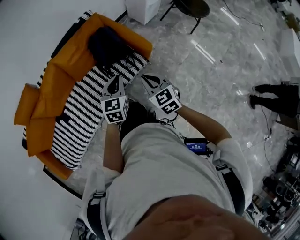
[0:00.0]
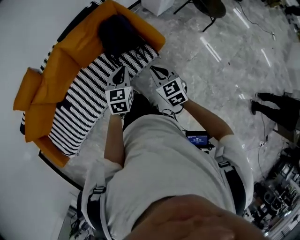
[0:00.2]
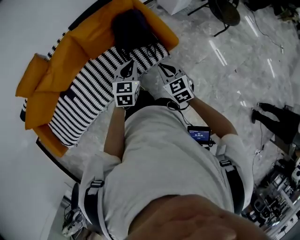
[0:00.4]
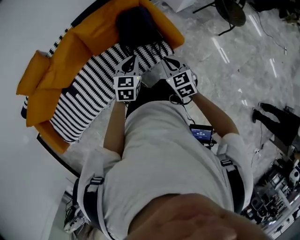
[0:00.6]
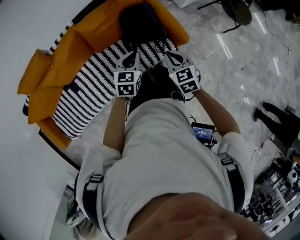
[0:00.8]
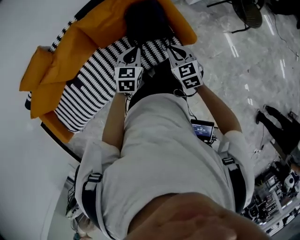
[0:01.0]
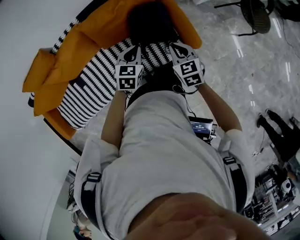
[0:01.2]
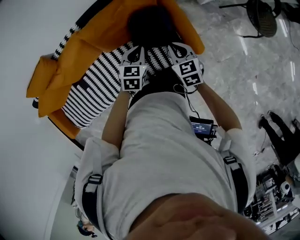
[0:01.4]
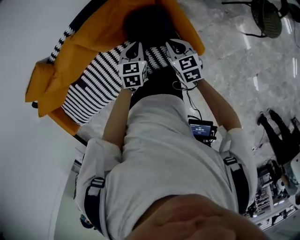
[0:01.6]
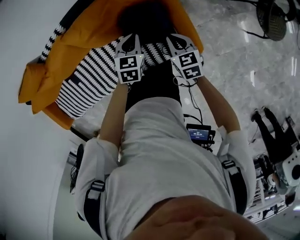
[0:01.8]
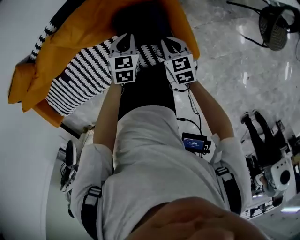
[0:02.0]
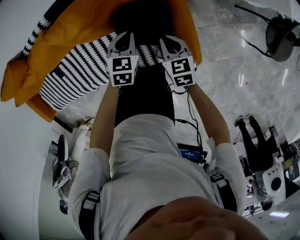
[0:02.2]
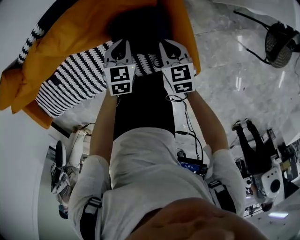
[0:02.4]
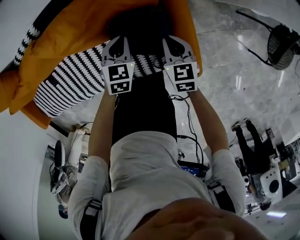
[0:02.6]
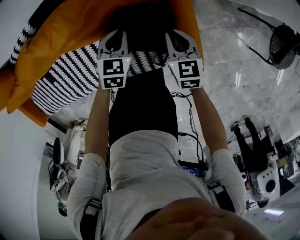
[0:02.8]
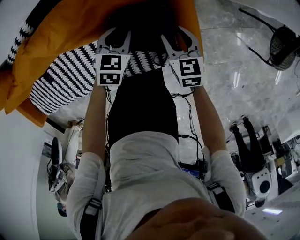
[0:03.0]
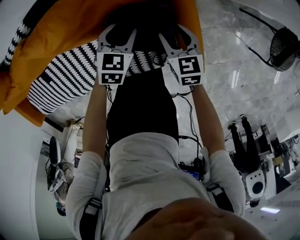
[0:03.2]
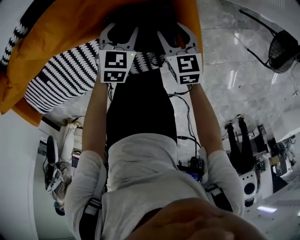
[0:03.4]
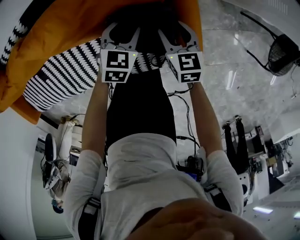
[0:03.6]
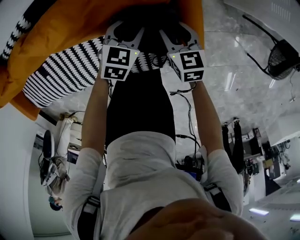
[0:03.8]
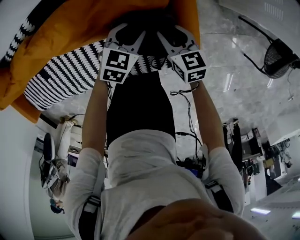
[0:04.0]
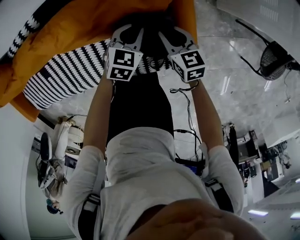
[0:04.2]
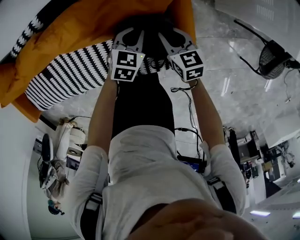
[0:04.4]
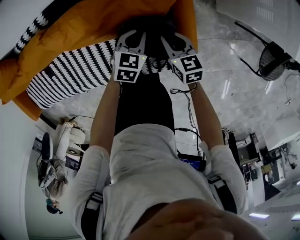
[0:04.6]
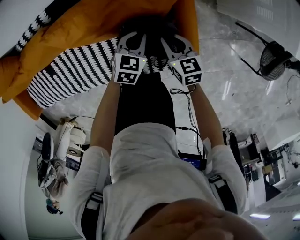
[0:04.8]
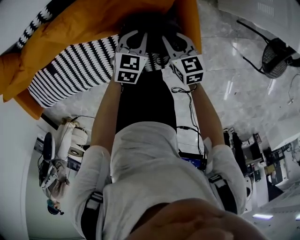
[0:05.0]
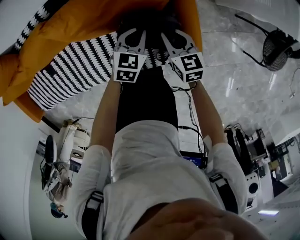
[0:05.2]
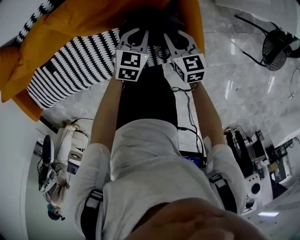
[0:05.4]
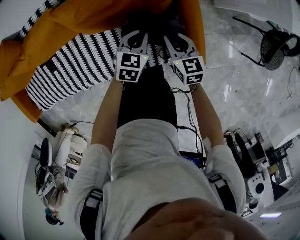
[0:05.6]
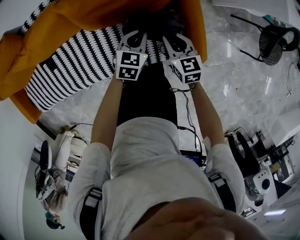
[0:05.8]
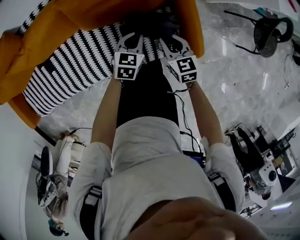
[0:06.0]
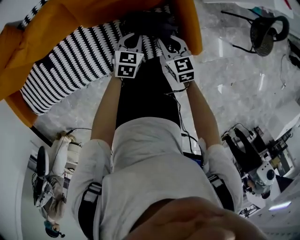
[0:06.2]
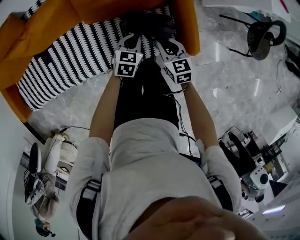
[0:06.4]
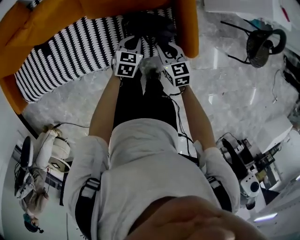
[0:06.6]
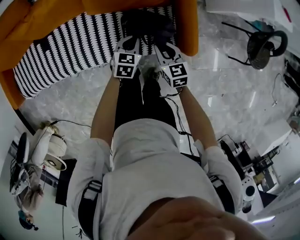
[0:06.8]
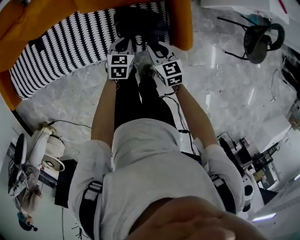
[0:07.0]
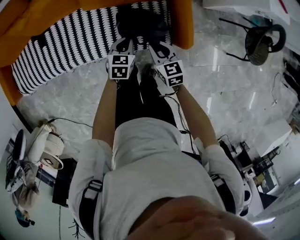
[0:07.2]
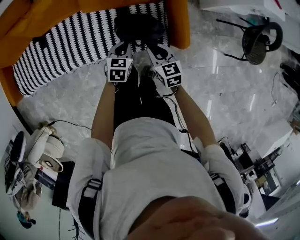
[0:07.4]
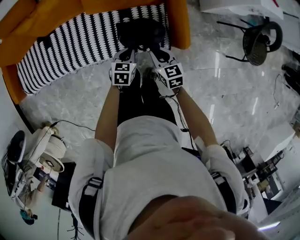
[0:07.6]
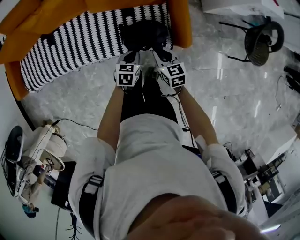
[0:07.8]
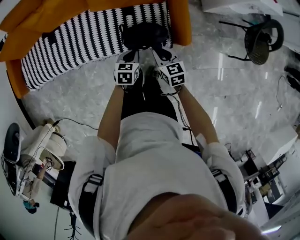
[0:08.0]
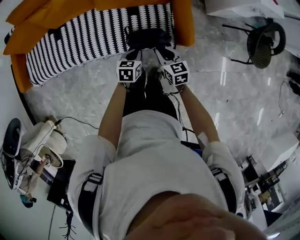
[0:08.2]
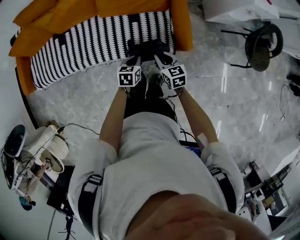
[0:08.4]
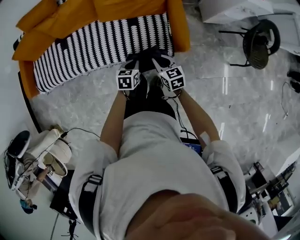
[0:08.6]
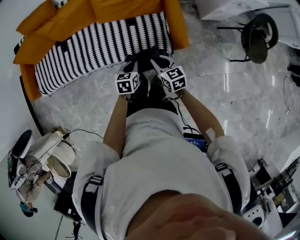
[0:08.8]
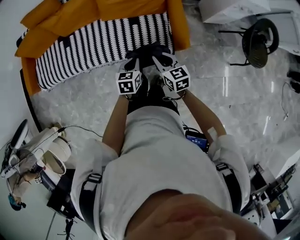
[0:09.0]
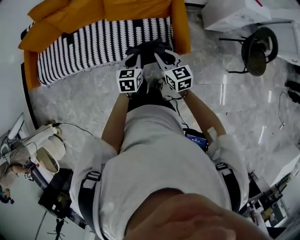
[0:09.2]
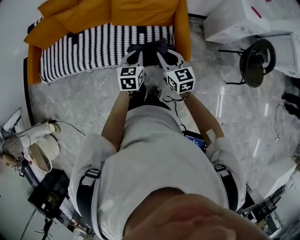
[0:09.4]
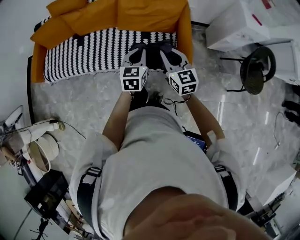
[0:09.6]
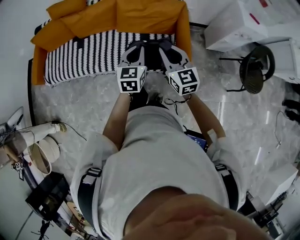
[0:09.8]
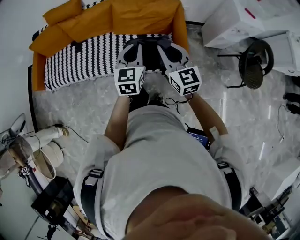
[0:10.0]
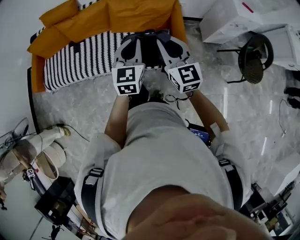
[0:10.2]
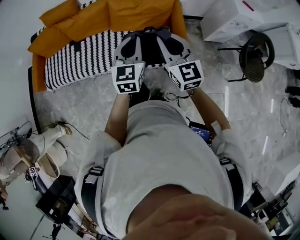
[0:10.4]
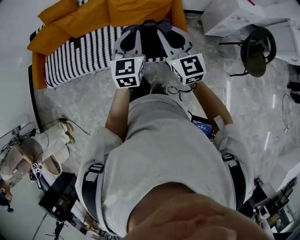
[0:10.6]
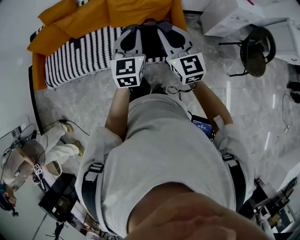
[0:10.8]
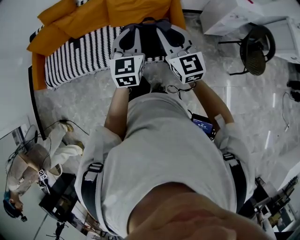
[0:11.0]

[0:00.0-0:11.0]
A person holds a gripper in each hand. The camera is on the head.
0:00.0 to 0:01.6: Both grippers travel together forward and downward, some 40 cm. The left gripper rotates some 20 degrees; the right gripper turns by some 20 degrees.
0:01.6 to 0:03.2: Both grippers travel together downward and forward, roughly 25 cm. The right gripper opens up, while the left gripper opens up.
0:03.2 to 0:04.8: The left gripper closes up, while the right gripper shifts by about 5 cm, and closes.
0:04.8 to 0:06.2: The left gripper goes approximately 20 cm backward. Meanwhile the right gripper is displaced backward and upward by about 20 cm.
0:06.2 to 0:07.8: Both grippers travel together backward, approximately 20 cm.
0:07.8 to 0:09.4: The two grippers go some 20 cm upward. The right gripper changes its angle by about 20 degrees; the left gripper changes its angle by roughly 20 degrees.
0:09.4 to 0:11.0: Both grippers travel together upward, some 20 cm. The right gripper changes its angle by about 20 degrees. The left gripper turns by about 30 degrees.

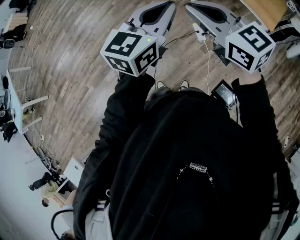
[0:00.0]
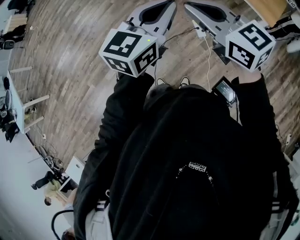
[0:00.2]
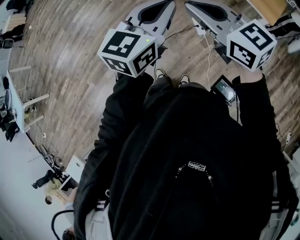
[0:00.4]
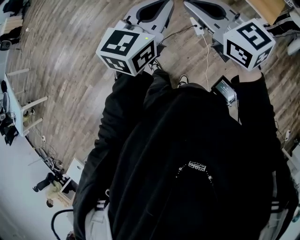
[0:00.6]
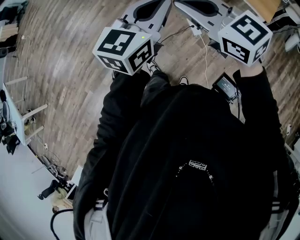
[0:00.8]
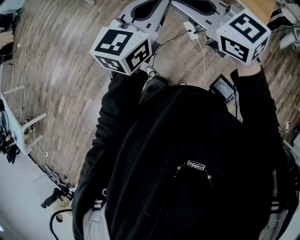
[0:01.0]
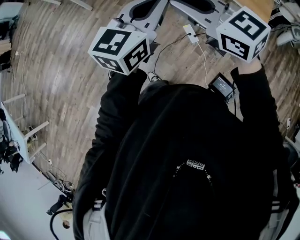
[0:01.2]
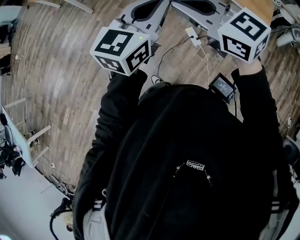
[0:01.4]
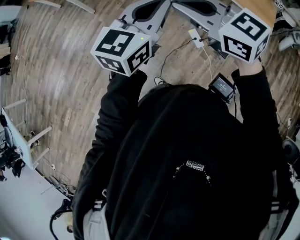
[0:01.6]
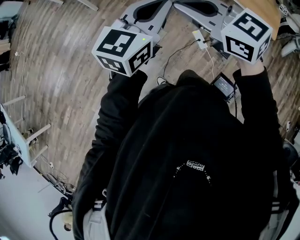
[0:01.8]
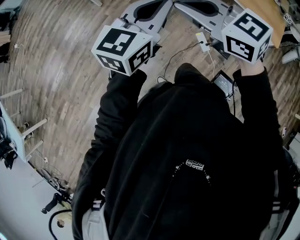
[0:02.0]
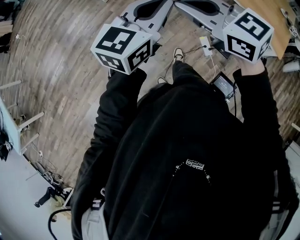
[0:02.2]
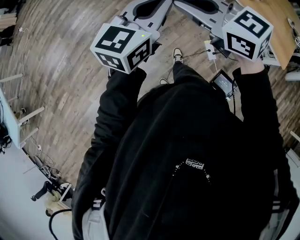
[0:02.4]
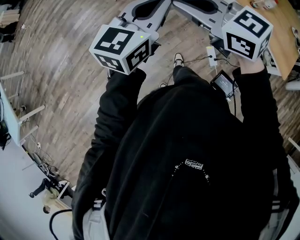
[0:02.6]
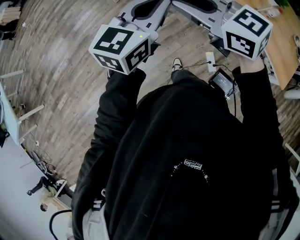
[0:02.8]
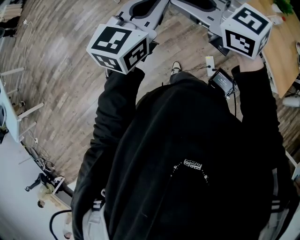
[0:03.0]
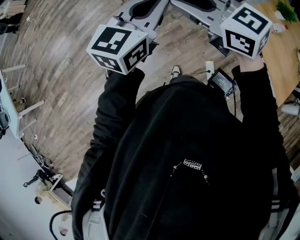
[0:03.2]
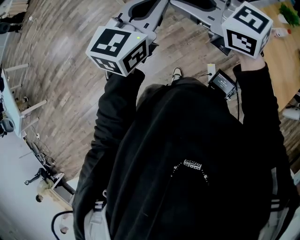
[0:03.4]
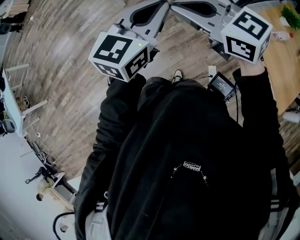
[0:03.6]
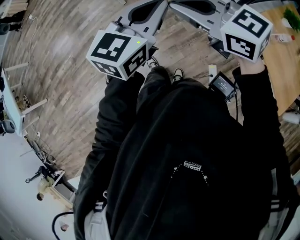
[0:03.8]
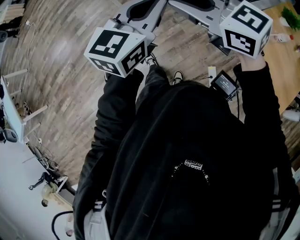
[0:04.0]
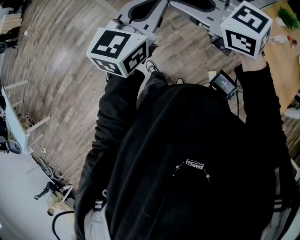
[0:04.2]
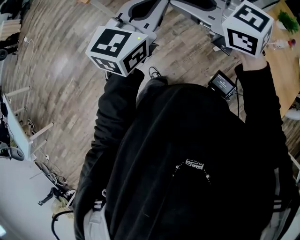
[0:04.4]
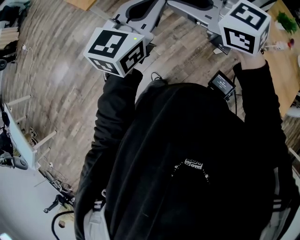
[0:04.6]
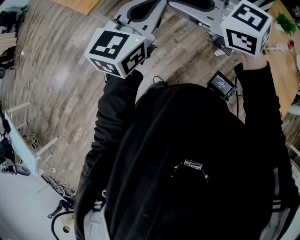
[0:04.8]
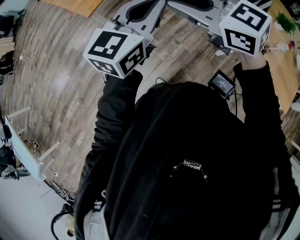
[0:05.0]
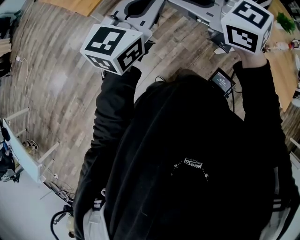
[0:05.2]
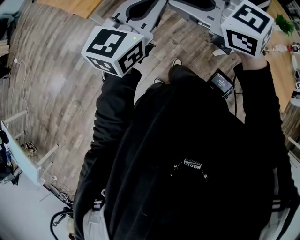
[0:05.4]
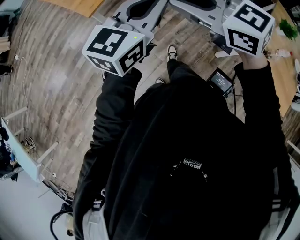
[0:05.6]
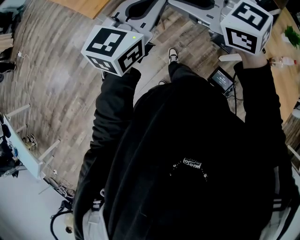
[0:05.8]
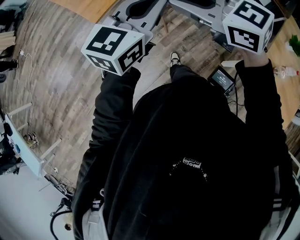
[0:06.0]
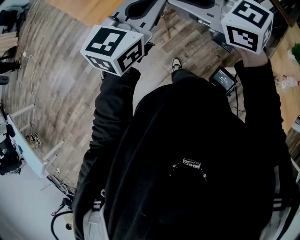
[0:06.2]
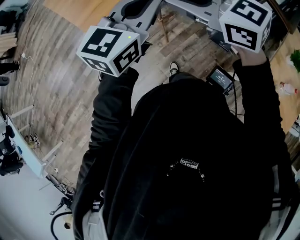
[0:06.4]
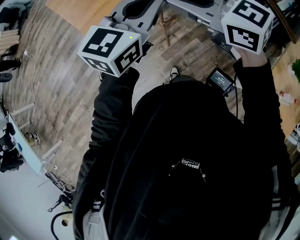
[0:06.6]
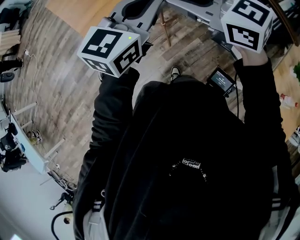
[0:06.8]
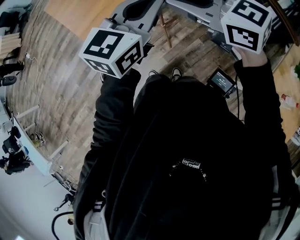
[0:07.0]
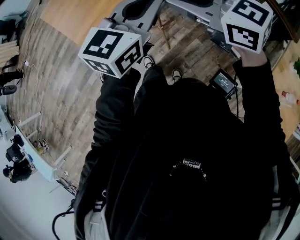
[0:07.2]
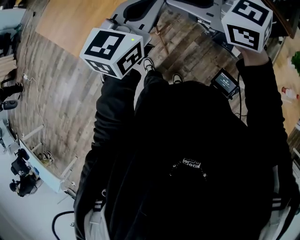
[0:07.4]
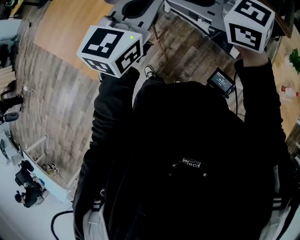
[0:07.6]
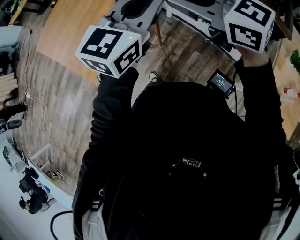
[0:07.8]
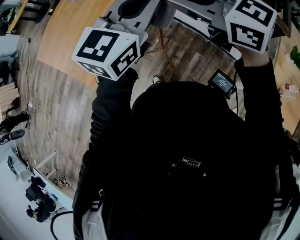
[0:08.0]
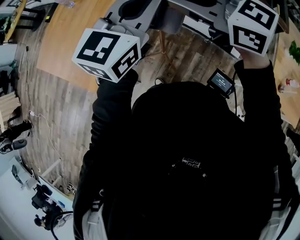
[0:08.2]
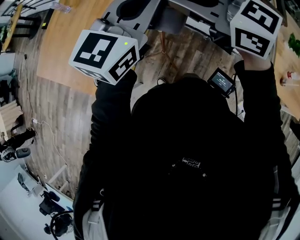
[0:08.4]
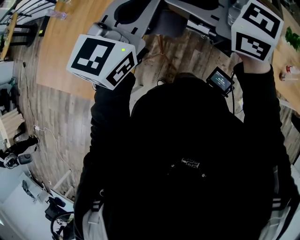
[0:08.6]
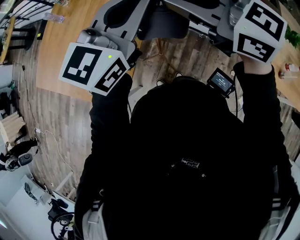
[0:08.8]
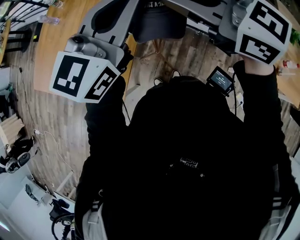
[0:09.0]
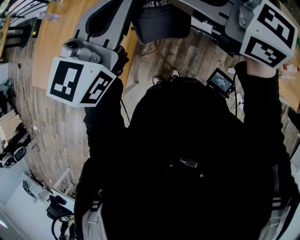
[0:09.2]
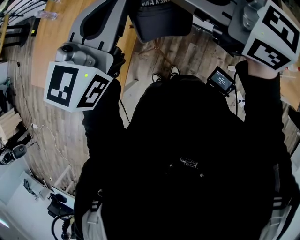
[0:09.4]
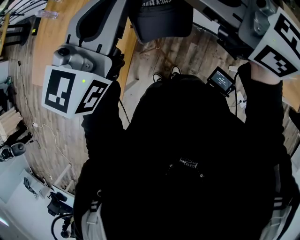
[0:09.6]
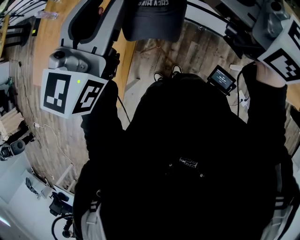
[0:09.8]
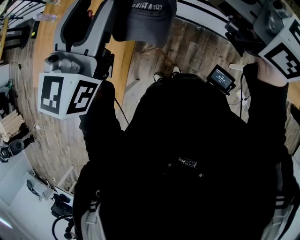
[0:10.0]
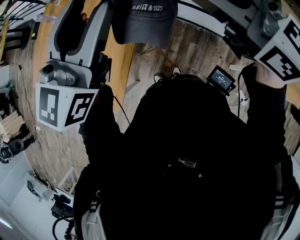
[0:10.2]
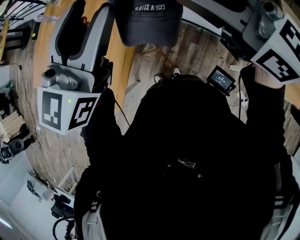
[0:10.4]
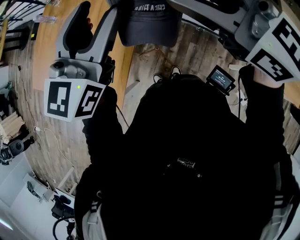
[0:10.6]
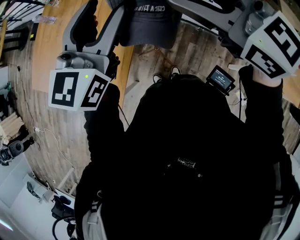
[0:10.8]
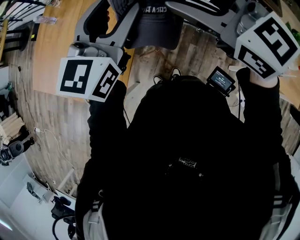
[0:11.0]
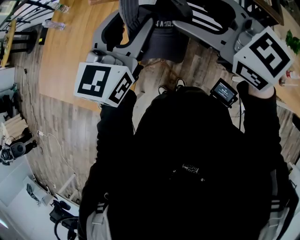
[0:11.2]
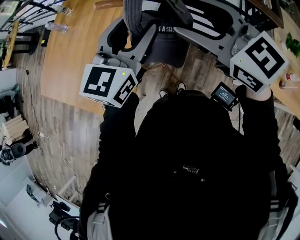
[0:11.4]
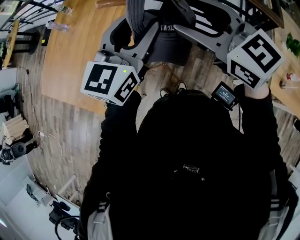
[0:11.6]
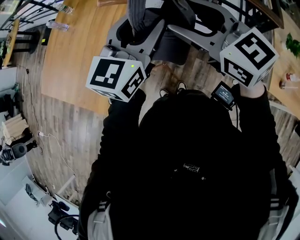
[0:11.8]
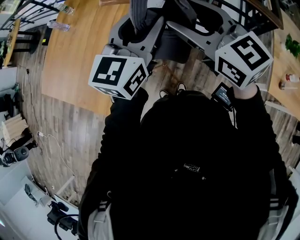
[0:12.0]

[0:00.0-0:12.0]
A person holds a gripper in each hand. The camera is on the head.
0:00.0 to 0:01.6: The grippers both shift forward and to the left by approximately 20 cm.
0:01.6 to 0:03.0: Both grippers travel together forward, roughly 25 cm.
0:03.0 to 0:04.4: Both grippers move forward, about 20 cm.
0:04.4 to 0:06.0: Both grippers travel together forward, roughly 25 cm.
0:06.0 to 0:07.6: Both grippers travel together forward, approximately 30 cm.
0:07.6 to 0:09.0: The right gripper goes roughly 10 cm forward and upward. The left gripper is displaced forward, upward and to the left by approximately 15 cm.
0:09.0 to 0:10.4: The right gripper changes place by about 5 cm, and opens up. Meanwhile the left gripper ends up about 5 cm from where it was, and opens.
0:10.4 to 0:12.0: The right gripper is displaced downward by approximately 10 cm; the left gripper heads downward and to the right, covering about 10 cm.

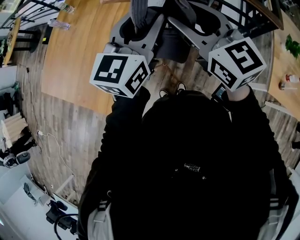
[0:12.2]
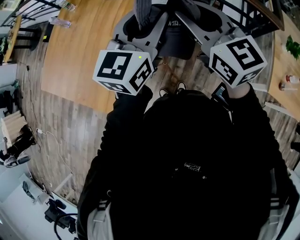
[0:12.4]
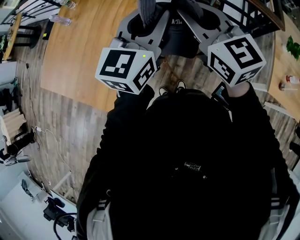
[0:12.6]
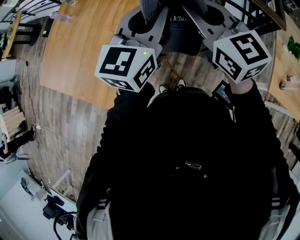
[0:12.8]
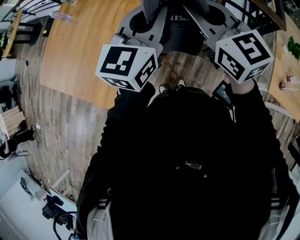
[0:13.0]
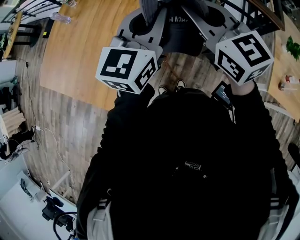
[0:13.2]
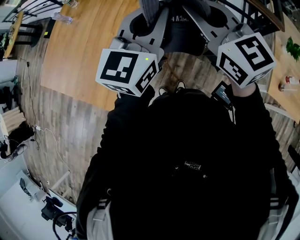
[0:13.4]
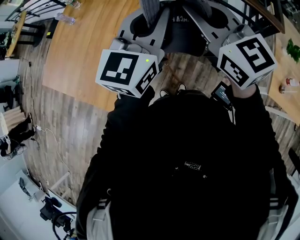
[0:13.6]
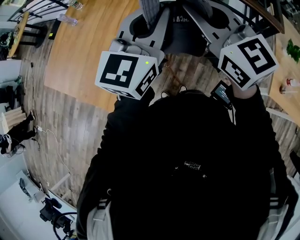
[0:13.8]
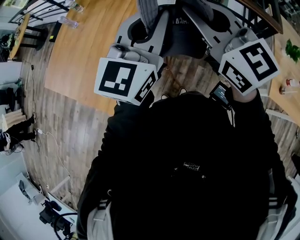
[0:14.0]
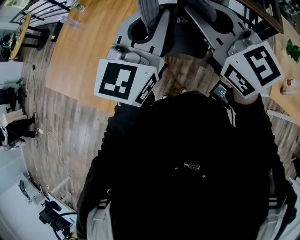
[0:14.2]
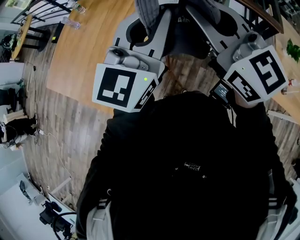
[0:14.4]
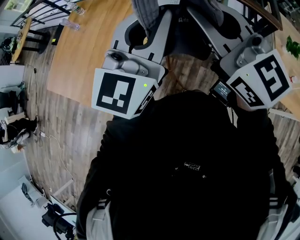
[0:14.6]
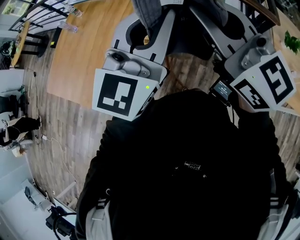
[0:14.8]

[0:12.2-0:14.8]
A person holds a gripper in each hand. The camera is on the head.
0:12.2 to 0:13.4: The right gripper closes. Meanwhile the left gripper closes its fingers.
0:13.4 to 0:14.8: Both grippers move upward and backward, some 10 cm.